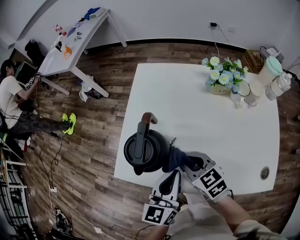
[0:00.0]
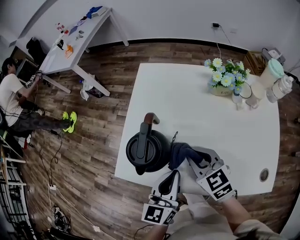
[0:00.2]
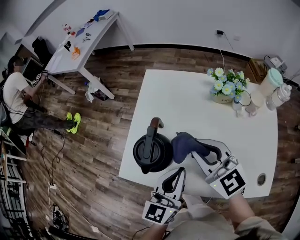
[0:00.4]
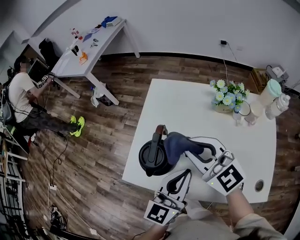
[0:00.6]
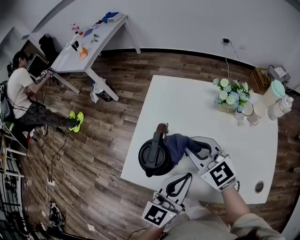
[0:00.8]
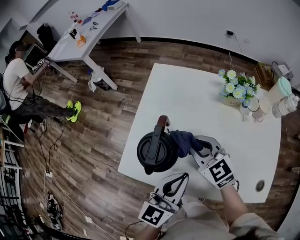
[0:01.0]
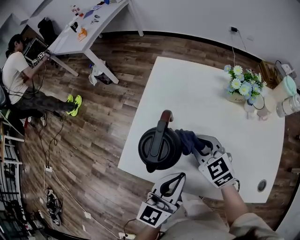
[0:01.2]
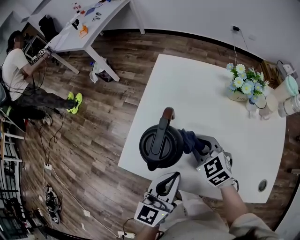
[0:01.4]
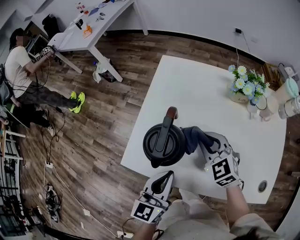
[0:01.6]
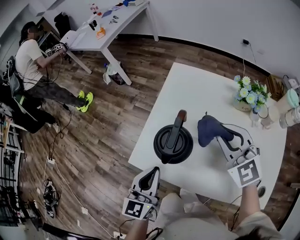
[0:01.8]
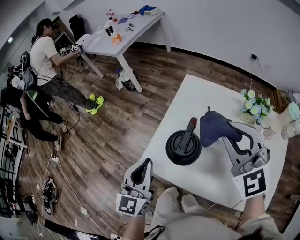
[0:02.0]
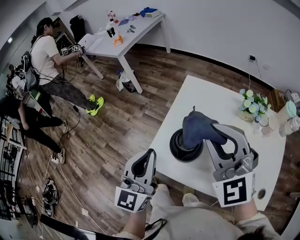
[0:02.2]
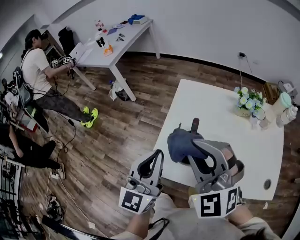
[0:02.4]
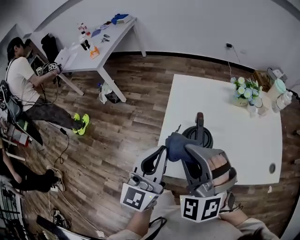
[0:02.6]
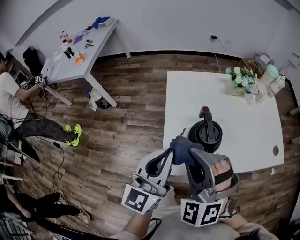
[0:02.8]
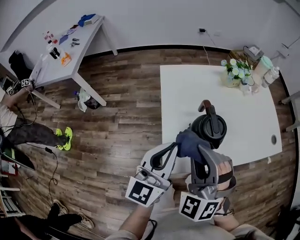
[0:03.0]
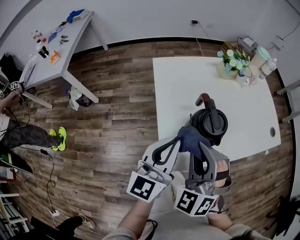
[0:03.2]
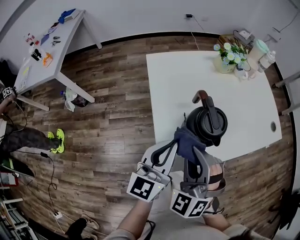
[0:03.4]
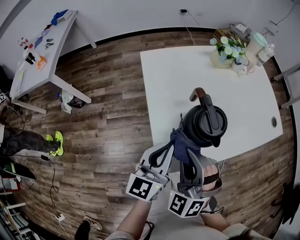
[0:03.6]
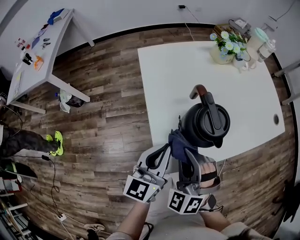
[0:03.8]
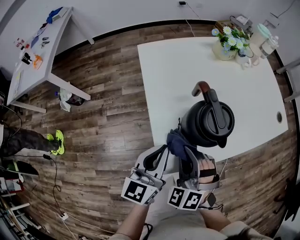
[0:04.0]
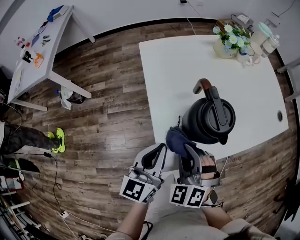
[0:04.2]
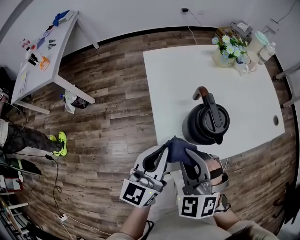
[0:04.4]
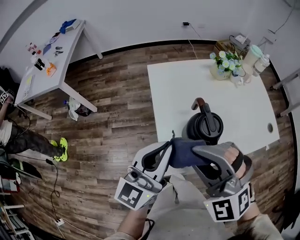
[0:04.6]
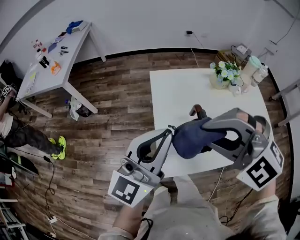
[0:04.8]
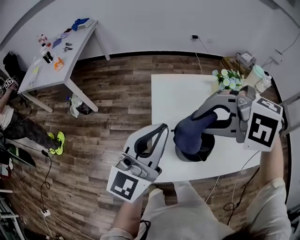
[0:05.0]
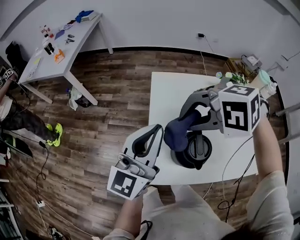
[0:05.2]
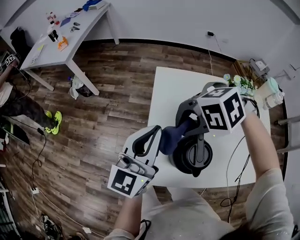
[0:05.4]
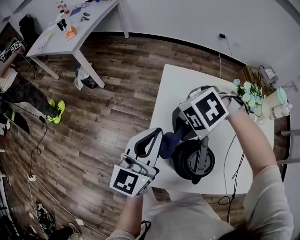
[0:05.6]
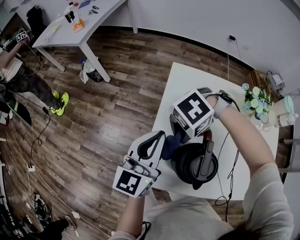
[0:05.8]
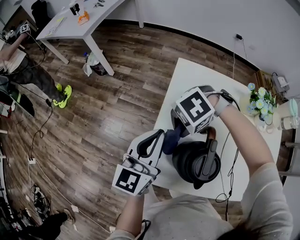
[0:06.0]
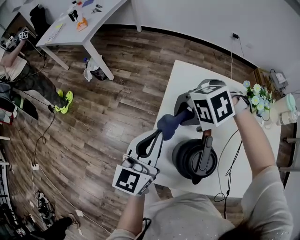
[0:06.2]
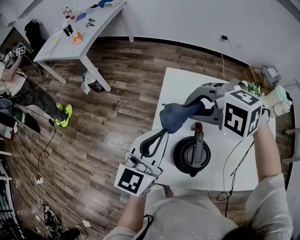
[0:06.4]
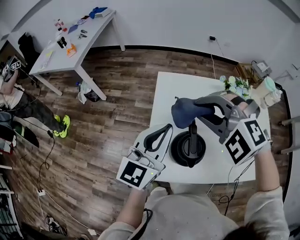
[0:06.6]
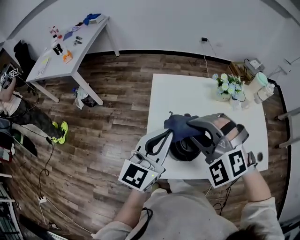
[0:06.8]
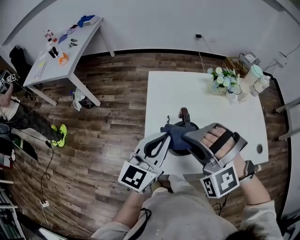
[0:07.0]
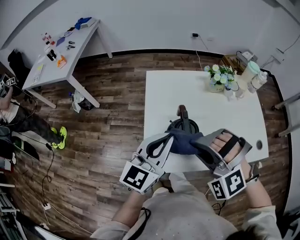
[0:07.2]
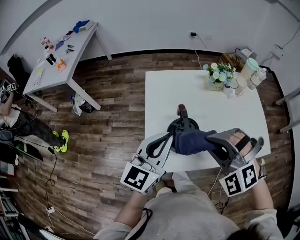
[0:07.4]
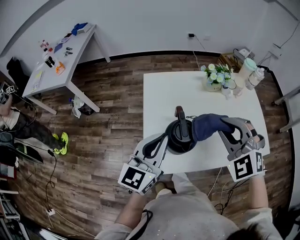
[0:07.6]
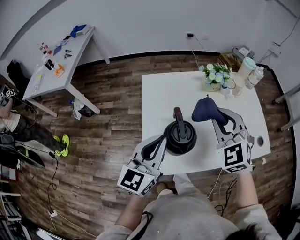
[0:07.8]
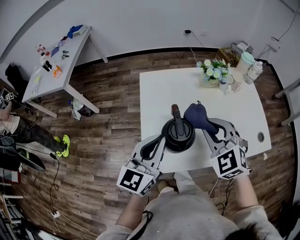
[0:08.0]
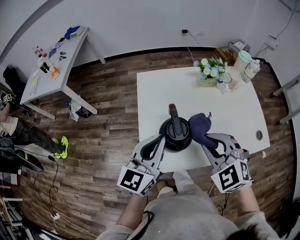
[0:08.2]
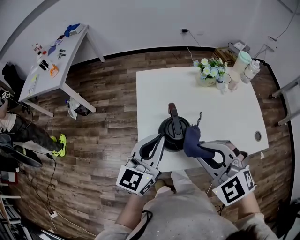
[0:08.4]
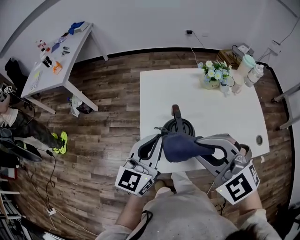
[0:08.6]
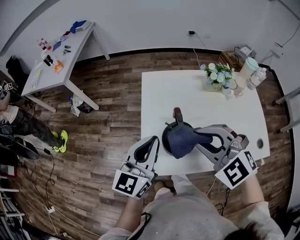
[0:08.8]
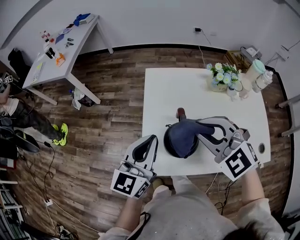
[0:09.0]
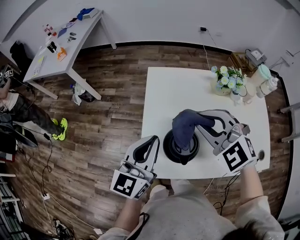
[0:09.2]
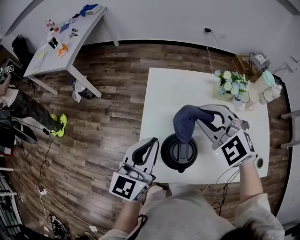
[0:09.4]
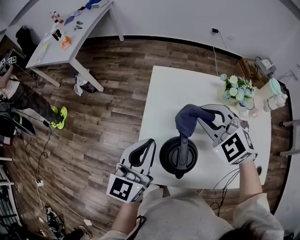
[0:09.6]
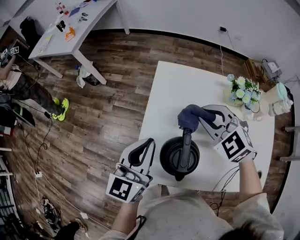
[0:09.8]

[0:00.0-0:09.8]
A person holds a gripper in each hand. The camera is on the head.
0:00.0 to 0:01.4: The right gripper is displaced forward by some 5 cm, travels upward and back again, some 20 cm each way, and swivels some 20 degrees. Meanwhile the left gripper reaches roughly 10 cm upward, then returns.
0:01.4 to 0:02.8: The left gripper shifts by approximately 25 cm, and turns by approximately 20 degrees. Meanwhile the right gripper heads upward, covering some 25 cm, and rotates some 50 degrees.
0:02.8 to 0:04.2: The grippers both shift downward by some 20 cm. The left gripper rotates about 20 degrees, while the right gripper turns by roughly 30 degrees.
0:04.2 to 0:05.6: The right gripper goes upward and returns, approximately 25 cm each way, and rotates approximately 110 degrees. The left gripper goes about 10 cm upward, and rotates approximately 20 degrees.
0:05.6 to 0:07.0: The left gripper ends up approximately 10 cm from where it was. Meanwhile the right gripper moves up and down over approximately 25 cm, changing direction 2 times, and turns by approximately 80 degrees.
0:07.0 to 0:08.4: The right gripper is displaced to the right by some 10 cm, and rolls clockwise, seen from behind, by approximately 40 degrees.
0:08.4 to 0:09.8: The left gripper goes approximately 5 cm forward, and rotates approximately 20 degrees. The right gripper travels forward by approximately 25 cm.

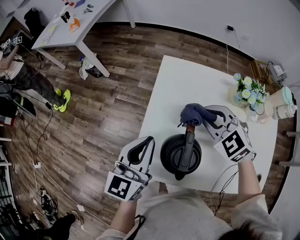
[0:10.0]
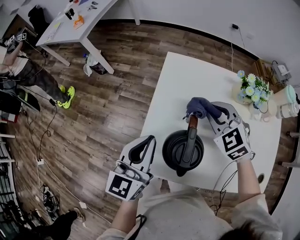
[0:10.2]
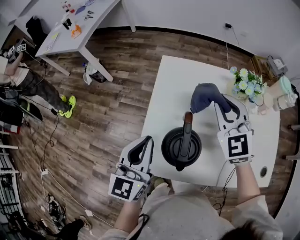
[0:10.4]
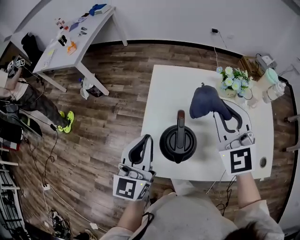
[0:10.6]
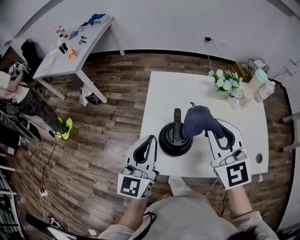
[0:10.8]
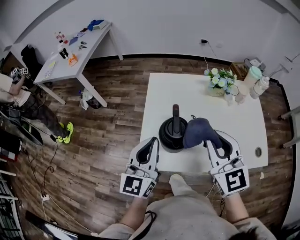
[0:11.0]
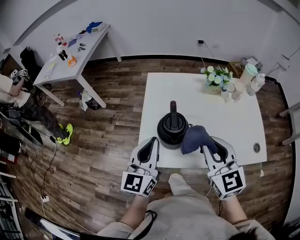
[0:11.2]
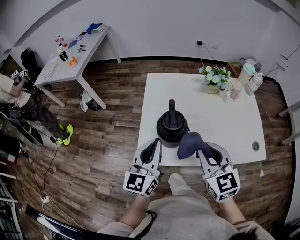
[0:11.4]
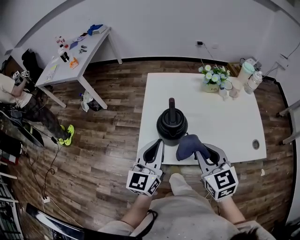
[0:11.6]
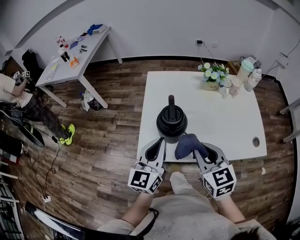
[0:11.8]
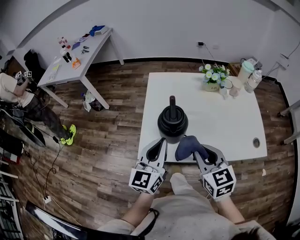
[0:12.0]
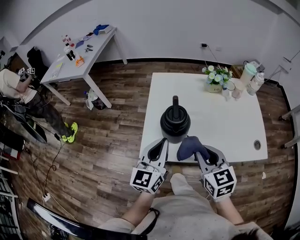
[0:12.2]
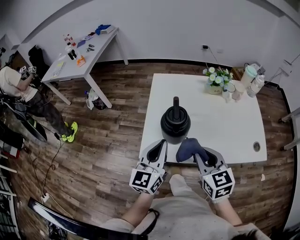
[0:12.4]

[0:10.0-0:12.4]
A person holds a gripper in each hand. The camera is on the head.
0:10.0 to 0:11.2: The right gripper heads backward and upward, covering about 25 cm, and turns by roughly 50 degrees, while the left gripper is displaced backward by about 10 cm.
0:11.2 to 0:12.4: The left gripper changes place by about 5 cm, while the right gripper shifts about 10 cm downward and backward.

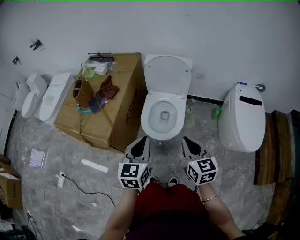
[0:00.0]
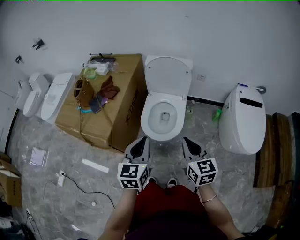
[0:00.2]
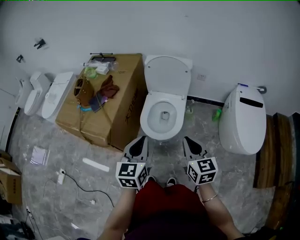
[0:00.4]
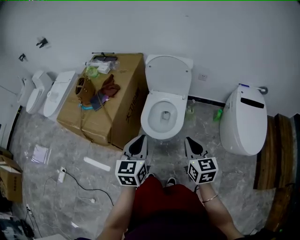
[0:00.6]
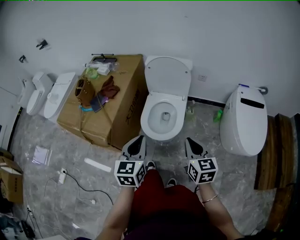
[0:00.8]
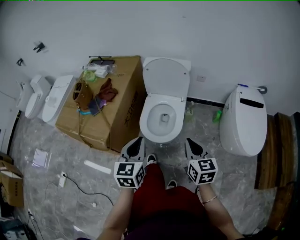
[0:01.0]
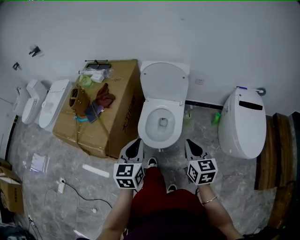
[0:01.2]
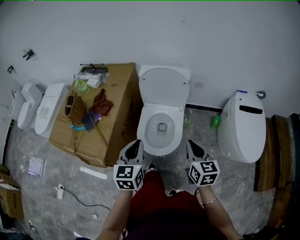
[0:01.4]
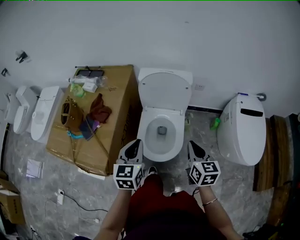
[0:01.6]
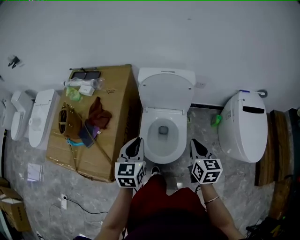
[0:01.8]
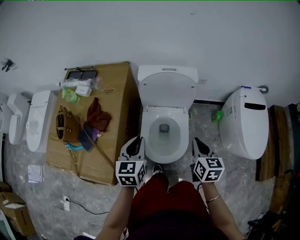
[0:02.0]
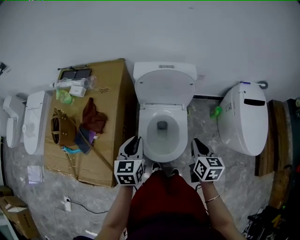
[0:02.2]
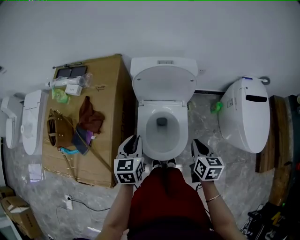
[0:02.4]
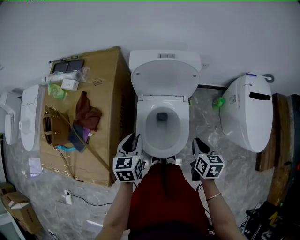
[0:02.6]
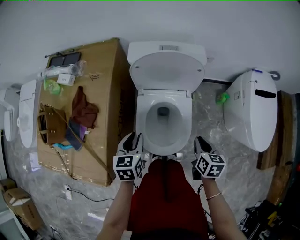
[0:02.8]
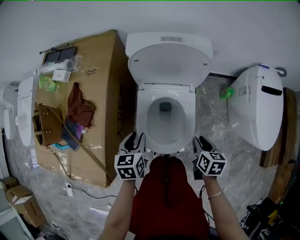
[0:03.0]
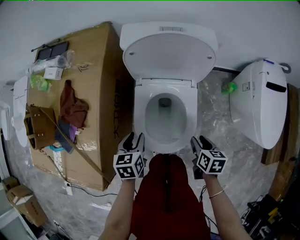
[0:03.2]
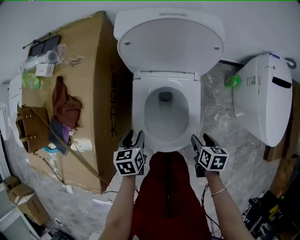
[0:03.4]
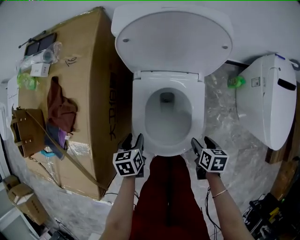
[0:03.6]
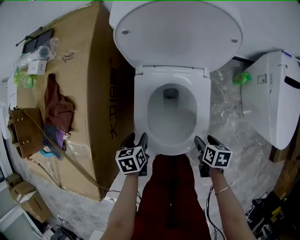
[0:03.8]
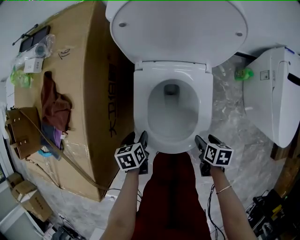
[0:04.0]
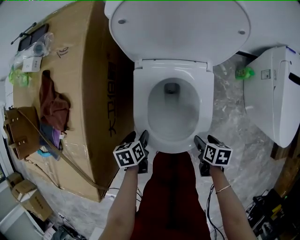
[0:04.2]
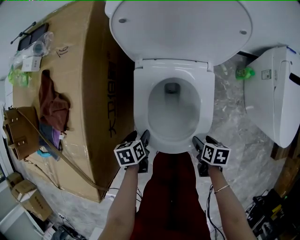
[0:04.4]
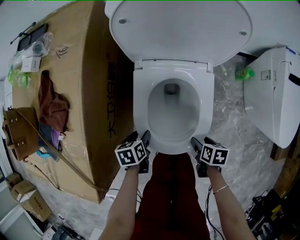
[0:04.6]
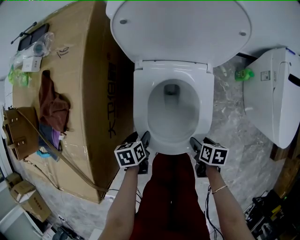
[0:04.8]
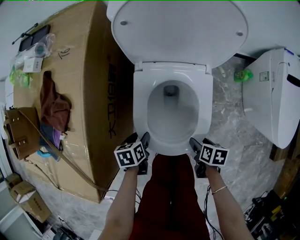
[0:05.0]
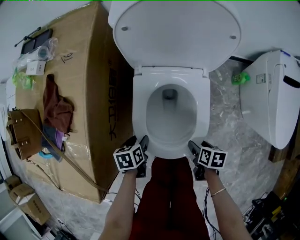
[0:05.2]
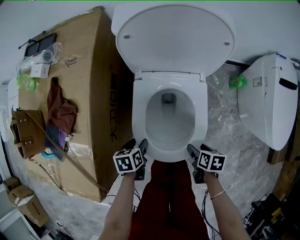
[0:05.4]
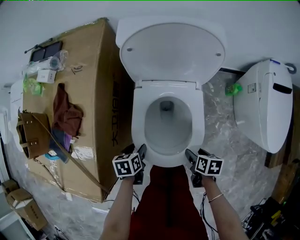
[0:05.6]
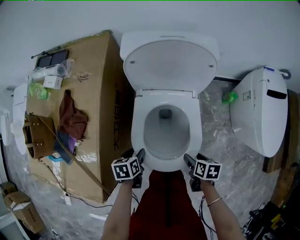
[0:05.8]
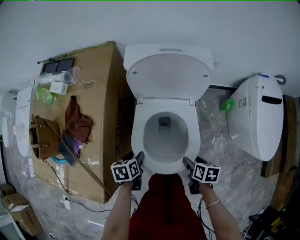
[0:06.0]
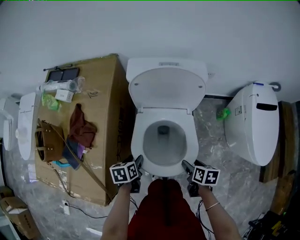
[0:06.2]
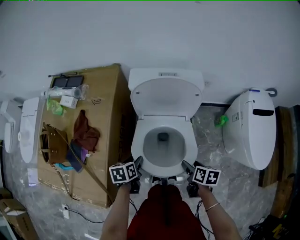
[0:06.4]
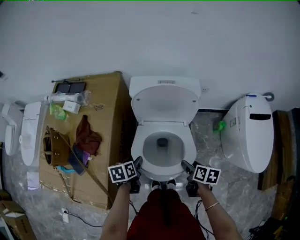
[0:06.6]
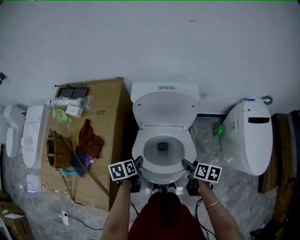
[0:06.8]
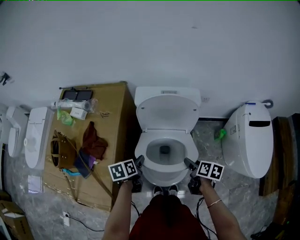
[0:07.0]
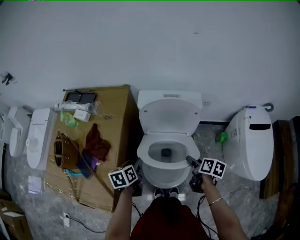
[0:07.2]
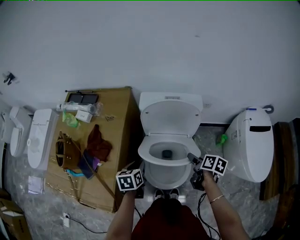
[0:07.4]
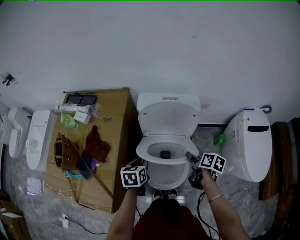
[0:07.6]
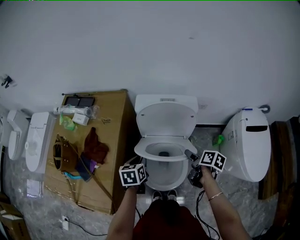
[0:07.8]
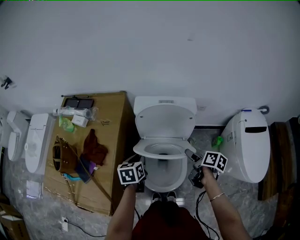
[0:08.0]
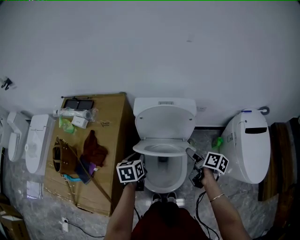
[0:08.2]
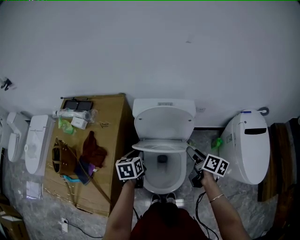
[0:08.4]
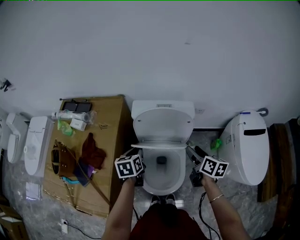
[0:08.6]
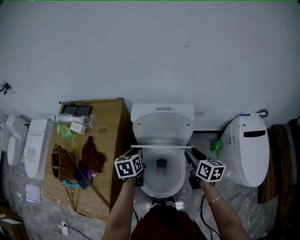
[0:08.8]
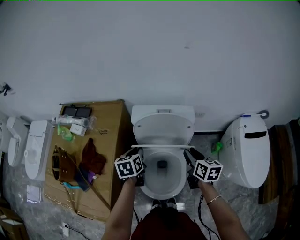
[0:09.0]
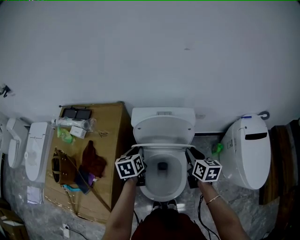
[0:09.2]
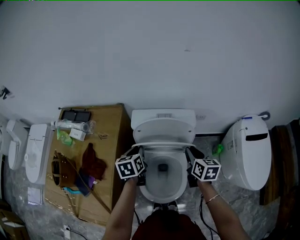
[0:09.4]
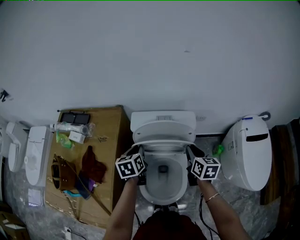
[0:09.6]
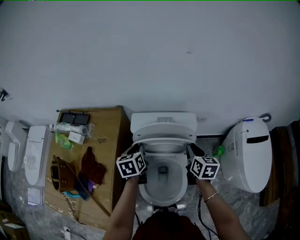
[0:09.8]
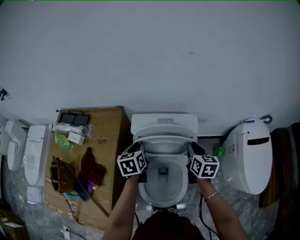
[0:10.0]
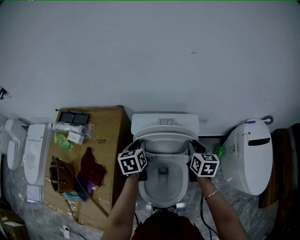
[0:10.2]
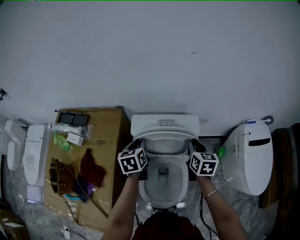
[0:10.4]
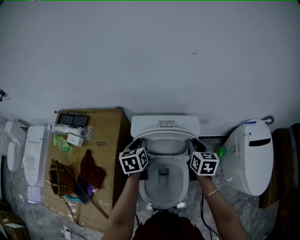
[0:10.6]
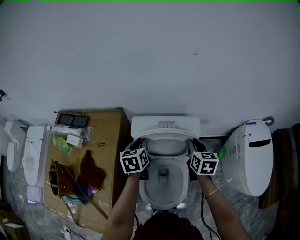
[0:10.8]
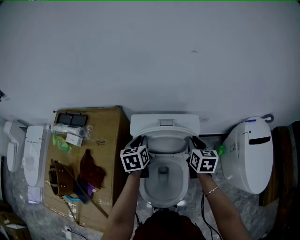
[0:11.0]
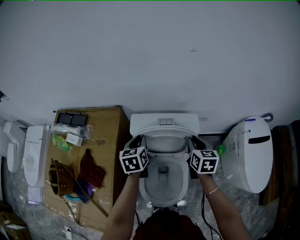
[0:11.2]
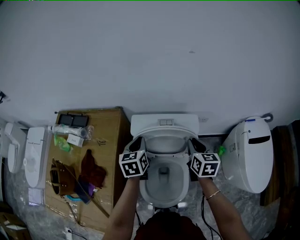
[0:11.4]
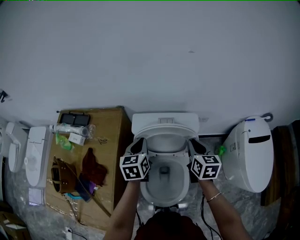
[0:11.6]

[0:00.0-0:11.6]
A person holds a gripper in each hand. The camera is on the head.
0:00.0 to 0:01.4: The grippers both shift forward by approximately 10 cm.
0:01.4 to 0:02.8: The left gripper travels forward and downward by about 25 cm, and rotates some 20 degrees, while the right gripper is displaced downward and forward by approximately 25 cm, and changes its angle by approximately 30 degrees.
0:02.8 to 0:04.4: The two grippers go roughly 30 cm downward. The left gripper turns by approximately 30 degrees, and opens up, while the right gripper changes its angle by some 30 degrees, and opens up.
0:04.4 to 0:05.8: The two grippers go about 10 cm upward.
0:05.8 to 0:07.2: The left gripper goes some 20 cm upward. The right gripper moves upward and forward, approximately 20 cm.
0:07.2 to 0:08.8: The right gripper heads upward and forward, covering some 15 cm, swivels about 30 degrees, and closes up. Meanwhile the left gripper moves forward, to the right and upward, approximately 15 cm, and closes up.
0:08.8 to 0:10.2: The grippers both shift forward by approximately 10 cm.
0:10.2 to 0:11.6: There are only small adjustments of the grippers.
